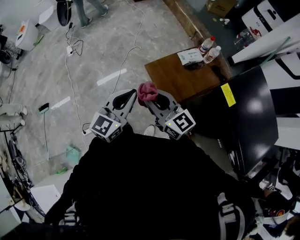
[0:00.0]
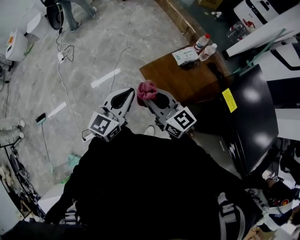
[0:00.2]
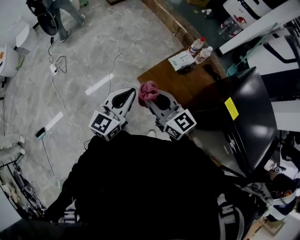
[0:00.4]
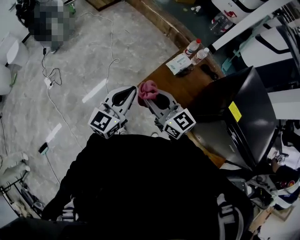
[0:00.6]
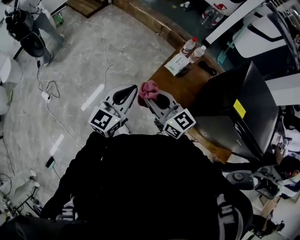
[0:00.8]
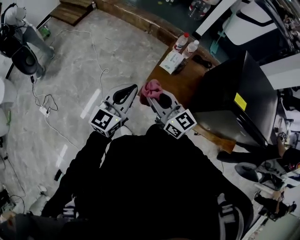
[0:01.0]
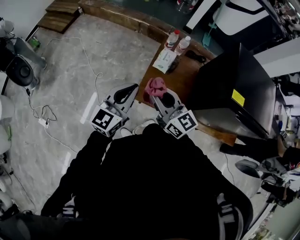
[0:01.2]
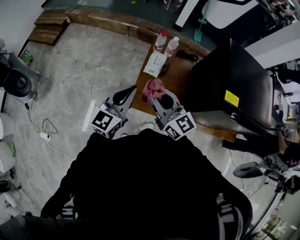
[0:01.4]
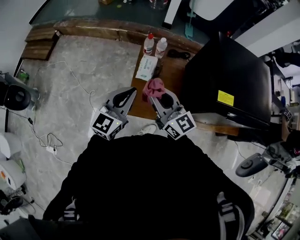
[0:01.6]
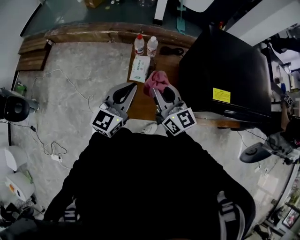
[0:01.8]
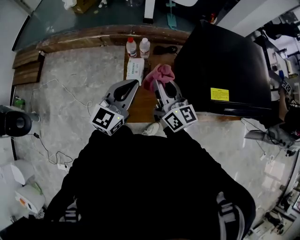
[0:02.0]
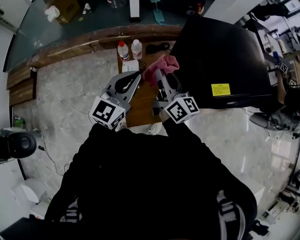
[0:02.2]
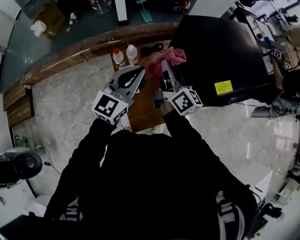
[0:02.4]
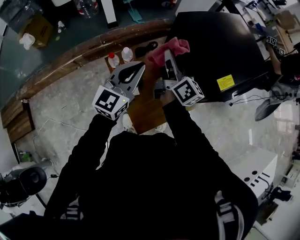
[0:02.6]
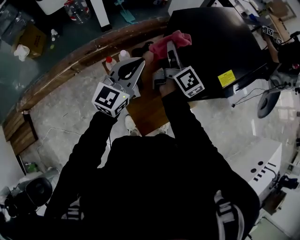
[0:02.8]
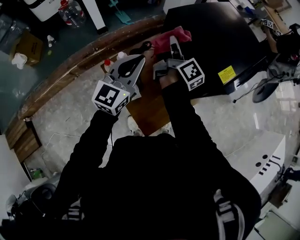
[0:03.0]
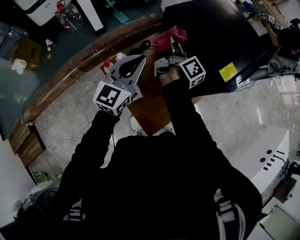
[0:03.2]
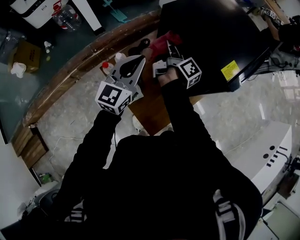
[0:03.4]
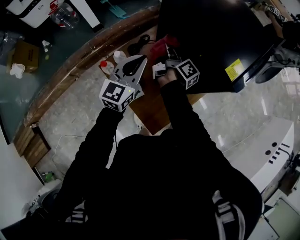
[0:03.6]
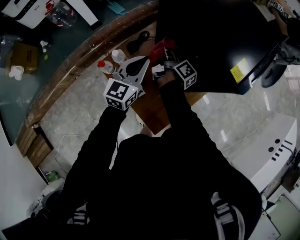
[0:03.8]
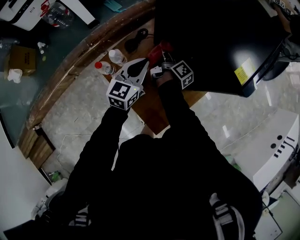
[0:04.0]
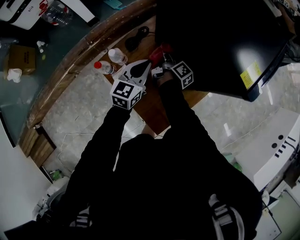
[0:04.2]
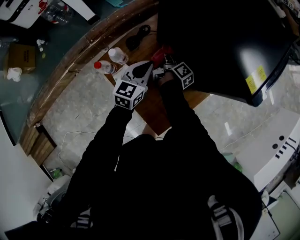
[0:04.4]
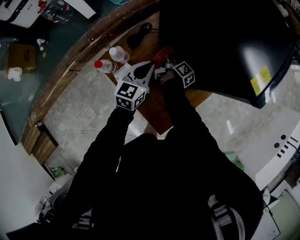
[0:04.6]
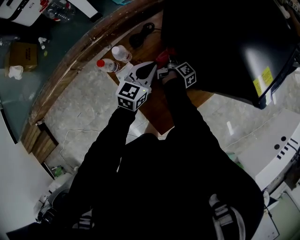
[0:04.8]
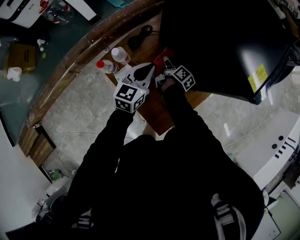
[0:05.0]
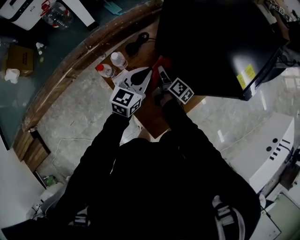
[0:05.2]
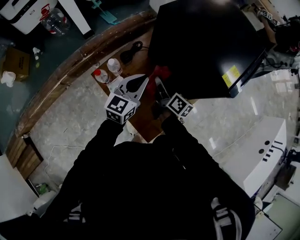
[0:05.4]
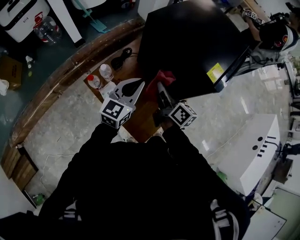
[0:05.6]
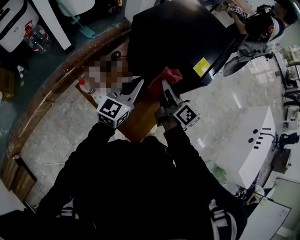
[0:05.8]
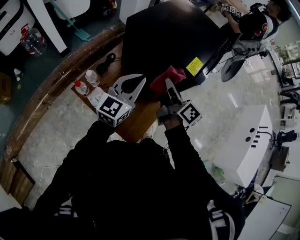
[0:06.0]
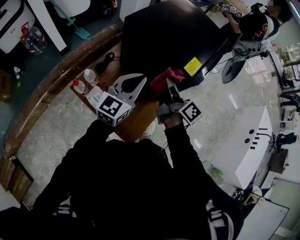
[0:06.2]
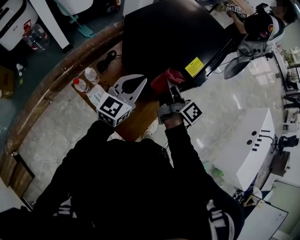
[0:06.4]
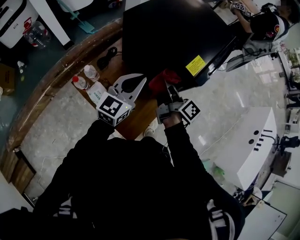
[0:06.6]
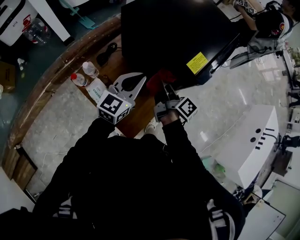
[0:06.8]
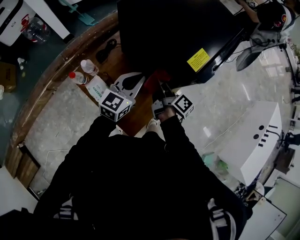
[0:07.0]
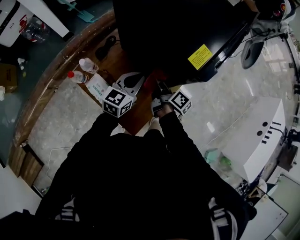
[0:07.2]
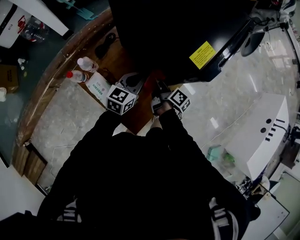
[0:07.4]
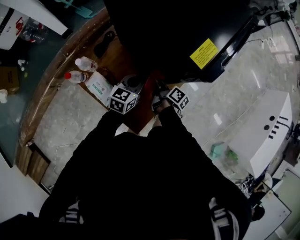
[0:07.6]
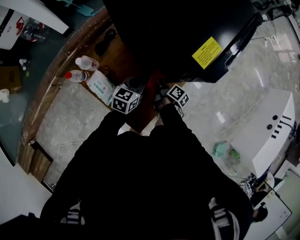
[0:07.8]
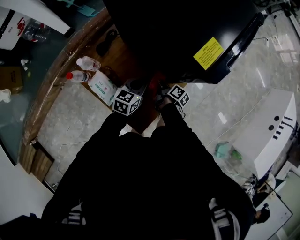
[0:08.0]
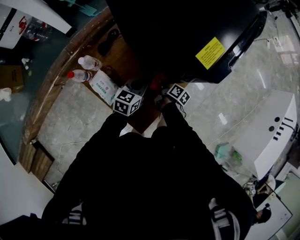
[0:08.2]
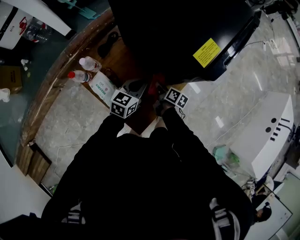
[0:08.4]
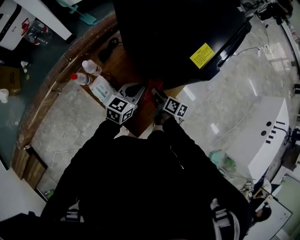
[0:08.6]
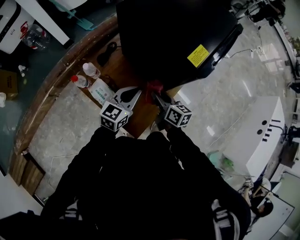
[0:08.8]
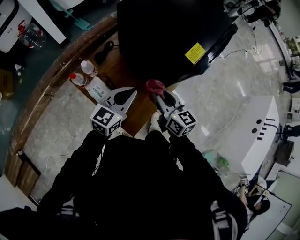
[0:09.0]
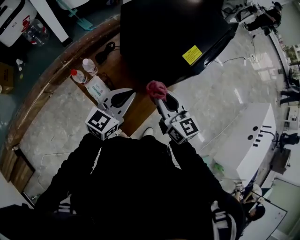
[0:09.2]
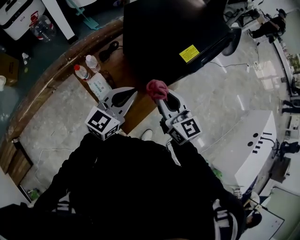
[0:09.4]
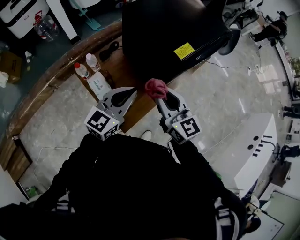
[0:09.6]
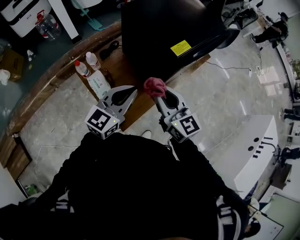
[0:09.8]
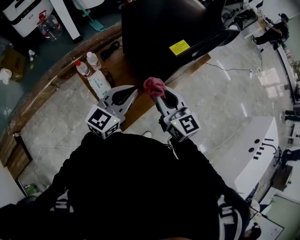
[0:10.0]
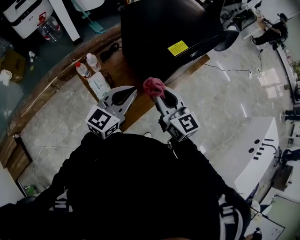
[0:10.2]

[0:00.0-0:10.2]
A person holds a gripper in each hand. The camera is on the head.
0:00.0 to 0:01.4: The right gripper changes place by about 30 cm, and rotates roughly 50 degrees. The left gripper changes place by about 35 cm, and rotates approximately 50 degrees.
0:01.4 to 0:03.0: The right gripper changes place by approximately 40 cm, and changes its angle by roughly 90 degrees. Meanwhile the left gripper shifts by some 35 cm, and rotates approximately 50 degrees.
0:03.0 to 0:04.4: The two grippers go roughly 30 cm downward. The right gripper swivels some 30 degrees. The left gripper swivels roughly 20 degrees.
0:04.4 to 0:05.8: The right gripper travels upward and backward by about 35 cm, and changes its angle by some 40 degrees. Meanwhile the left gripper goes about 20 cm upward, and changes its angle by approximately 20 degrees.
0:05.8 to 0:07.2: The right gripper goes approximately 20 cm downward, and changes its angle by some 30 degrees. The left gripper goes about 15 cm downward and to the right.
0:07.2 to 0:08.8: The grippers both shift backward by about 5 cm. The left gripper goes downward and returns, some 15 cm each way, while the right gripper moves some 20 cm downward and comes back, and swivels about 40 degrees.
0:08.8 to 0:10.2: The left gripper shifts about 20 cm upward and backward; the right gripper shifts approximately 20 cm upward, and swivels about 40 degrees.

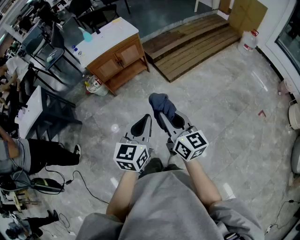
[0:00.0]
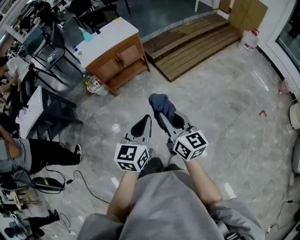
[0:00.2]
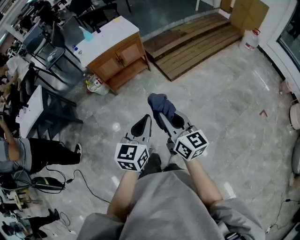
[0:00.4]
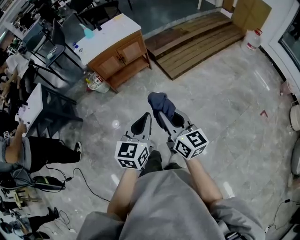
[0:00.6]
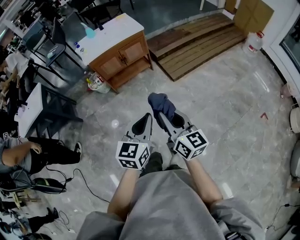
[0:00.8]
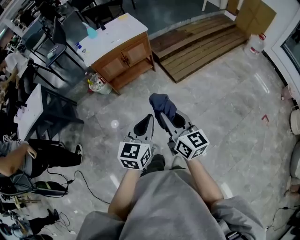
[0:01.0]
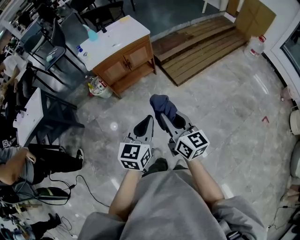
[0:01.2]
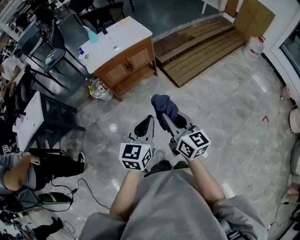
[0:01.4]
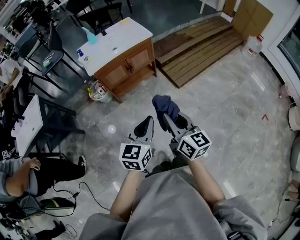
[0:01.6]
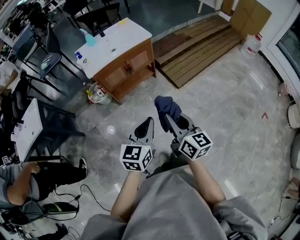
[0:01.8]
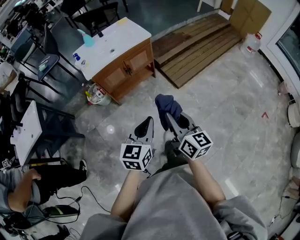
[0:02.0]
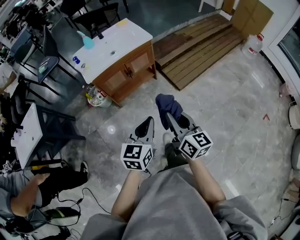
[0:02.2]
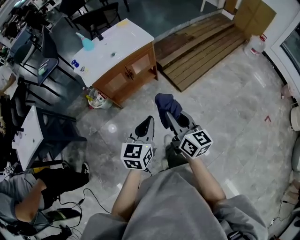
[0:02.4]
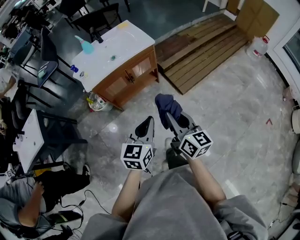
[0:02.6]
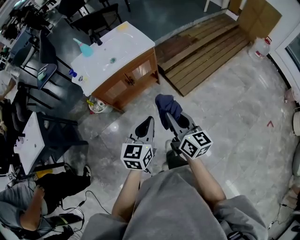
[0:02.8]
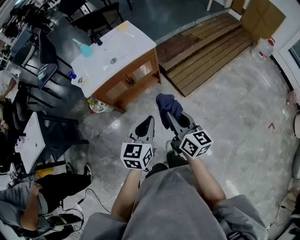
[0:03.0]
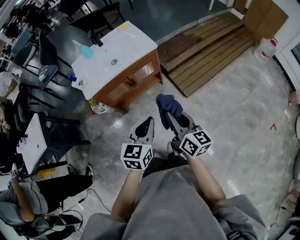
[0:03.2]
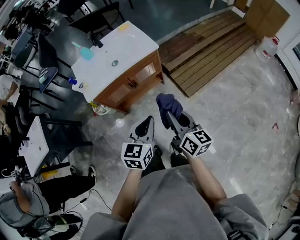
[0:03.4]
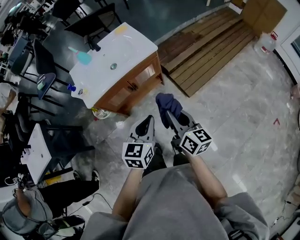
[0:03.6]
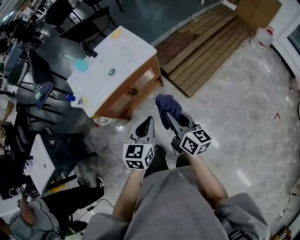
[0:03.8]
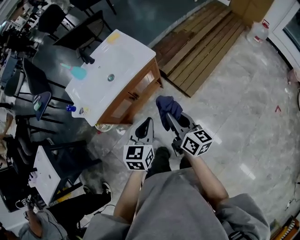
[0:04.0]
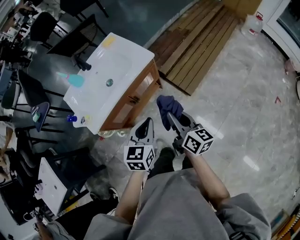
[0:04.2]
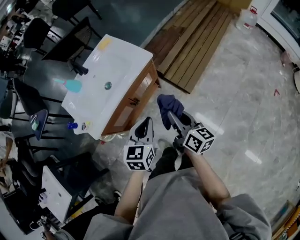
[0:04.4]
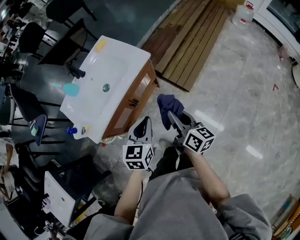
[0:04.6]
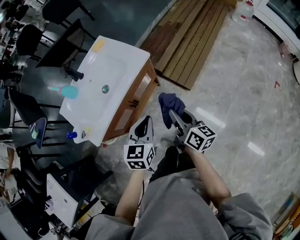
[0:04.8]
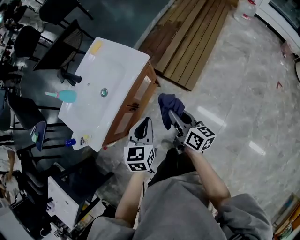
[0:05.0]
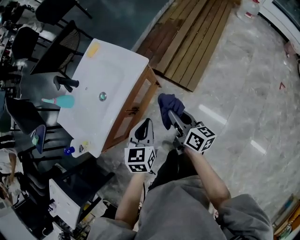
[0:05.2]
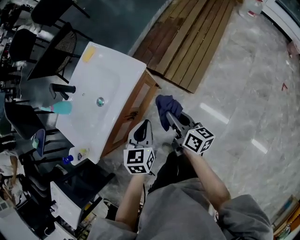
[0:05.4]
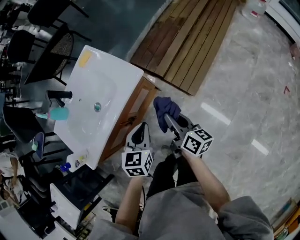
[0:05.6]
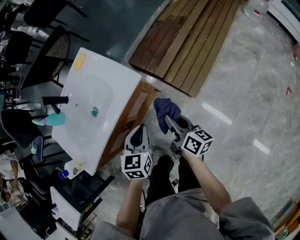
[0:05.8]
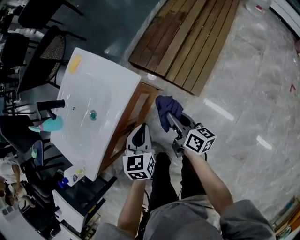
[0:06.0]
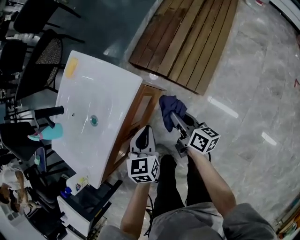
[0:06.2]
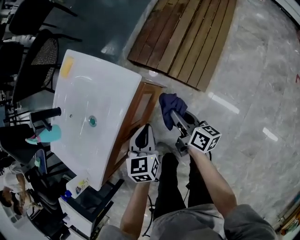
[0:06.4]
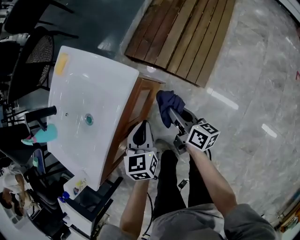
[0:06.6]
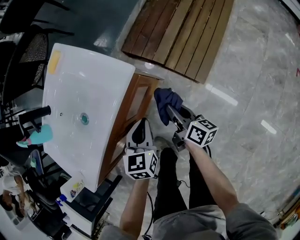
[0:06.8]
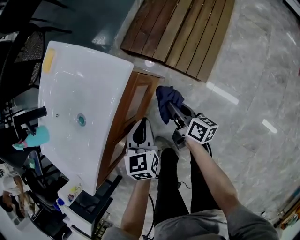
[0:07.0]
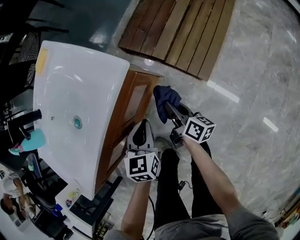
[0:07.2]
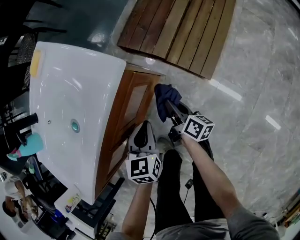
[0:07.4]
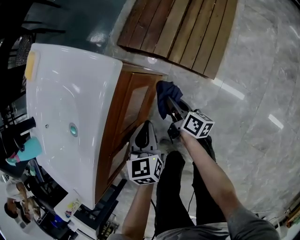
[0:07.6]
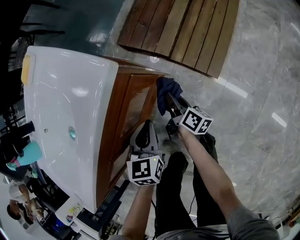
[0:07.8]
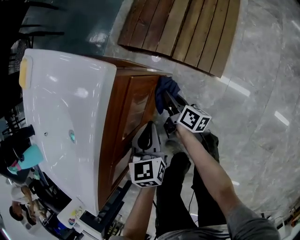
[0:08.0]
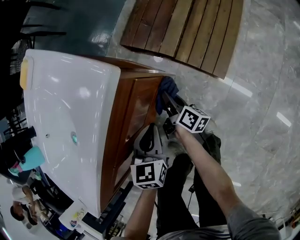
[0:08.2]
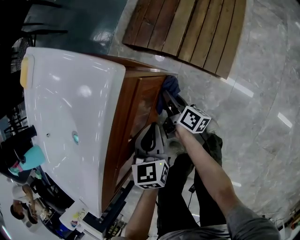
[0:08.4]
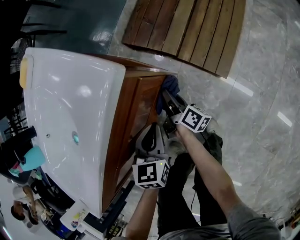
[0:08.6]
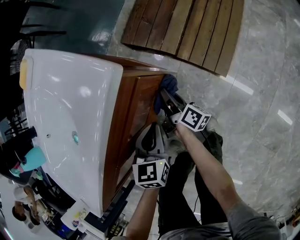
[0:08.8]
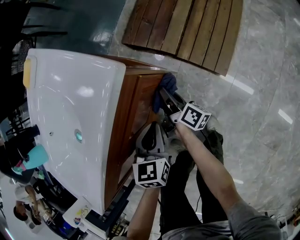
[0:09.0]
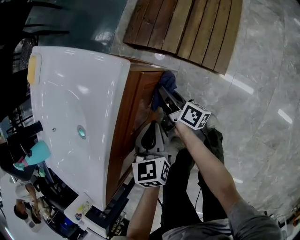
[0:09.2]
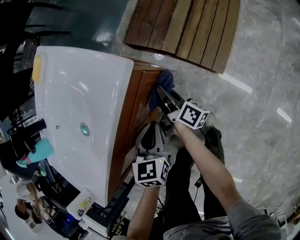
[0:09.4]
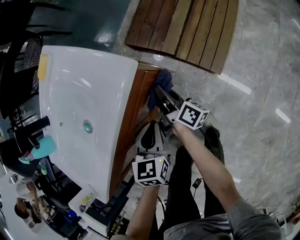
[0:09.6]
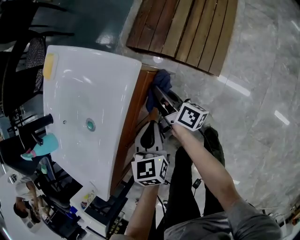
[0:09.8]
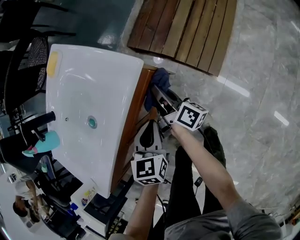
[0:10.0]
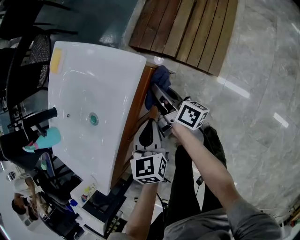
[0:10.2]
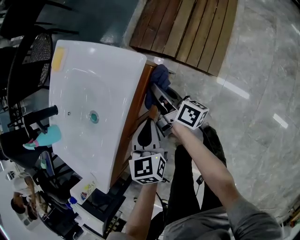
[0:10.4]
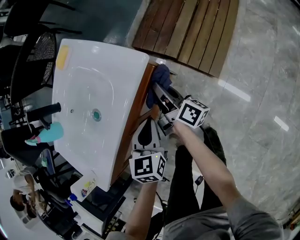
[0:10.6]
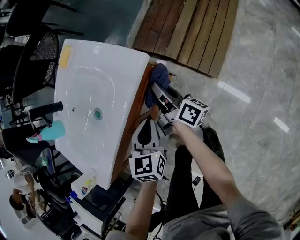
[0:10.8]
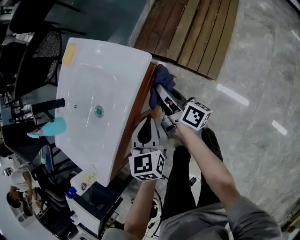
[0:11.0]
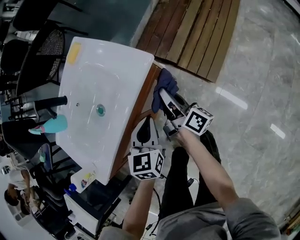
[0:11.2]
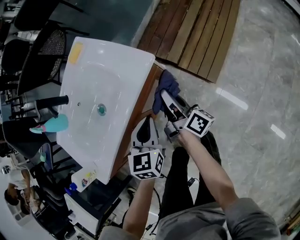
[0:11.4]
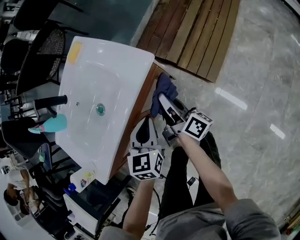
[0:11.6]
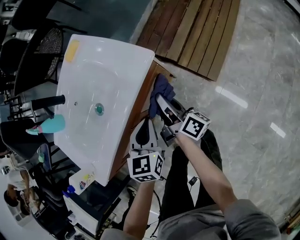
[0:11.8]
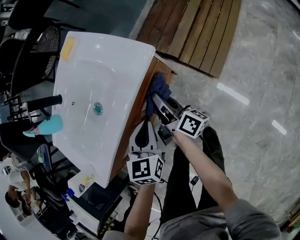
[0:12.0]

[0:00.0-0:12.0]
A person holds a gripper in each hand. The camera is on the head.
0:00.0 to 0:01.6: The two grippers go about 20 cm forward and to the left.
0:01.6 to 0:03.0: The two grippers go about 20 cm forward.
0:03.0 to 0:04.4: The right gripper travels forward, to the left and downward by some 20 cm. The left gripper is displaced forward and to the left by approximately 20 cm.
0:04.4 to 0:06.0: Both grippers travel together forward and downward, approximately 25 cm.
0:06.0 to 0:07.6: Both grippers travel together downward, approximately 25 cm.
0:07.6 to 0:09.0: The right gripper travels forward and to the left by approximately 5 cm.
0:09.0 to 0:10.4: The right gripper travels upward by about 20 cm; the left gripper travels upward by approximately 15 cm.
0:10.4 to 0:12.0: The right gripper shifts roughly 5 cm backward.

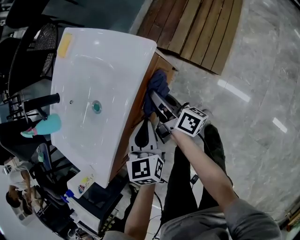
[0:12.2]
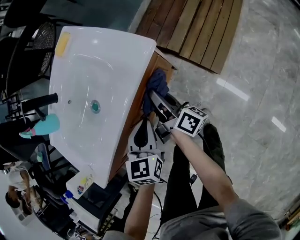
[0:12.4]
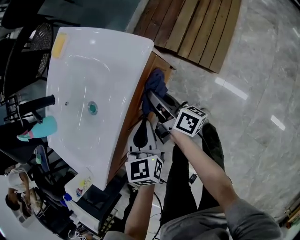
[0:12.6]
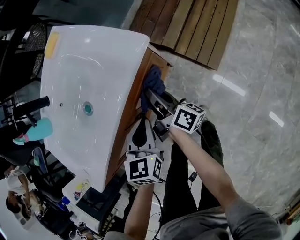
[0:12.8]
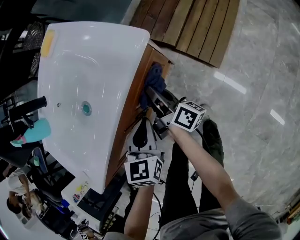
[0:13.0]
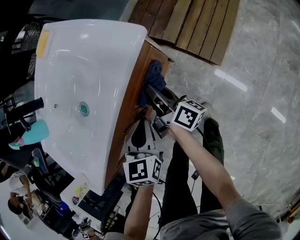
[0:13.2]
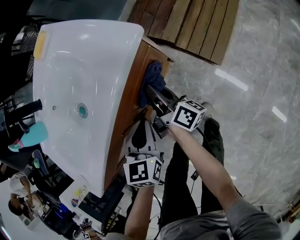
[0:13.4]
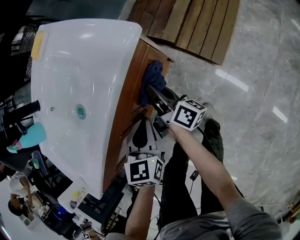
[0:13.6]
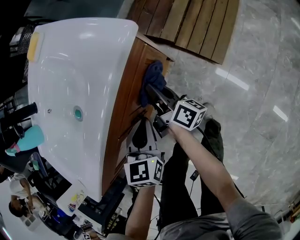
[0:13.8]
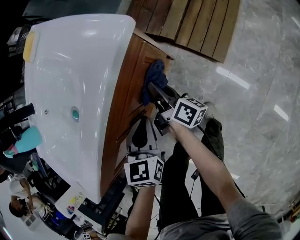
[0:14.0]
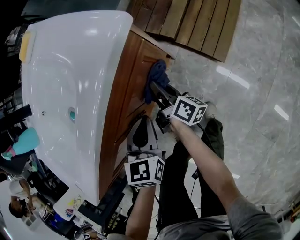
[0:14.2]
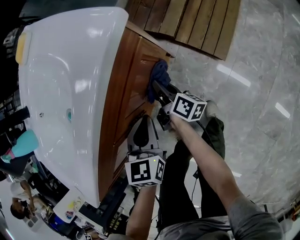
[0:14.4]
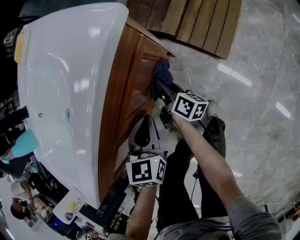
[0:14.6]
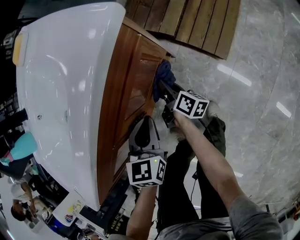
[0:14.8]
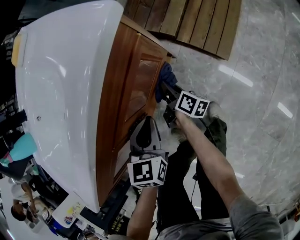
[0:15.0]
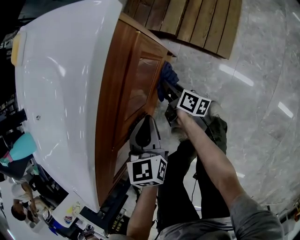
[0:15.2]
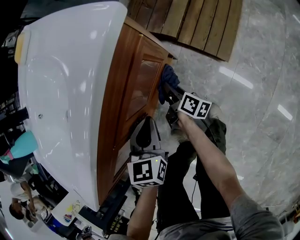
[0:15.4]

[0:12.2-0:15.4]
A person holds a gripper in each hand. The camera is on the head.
0:12.2 to 0:13.8: Both grippers travel together downward, some 10 cm.
0:13.8 to 0:15.4: The right gripper moves downward, roughly 20 cm. Meanwhile the left gripper goes some 5 cm downward.
